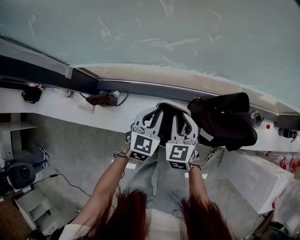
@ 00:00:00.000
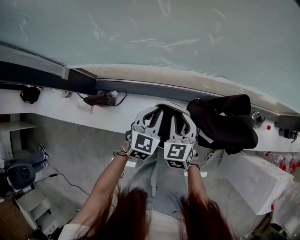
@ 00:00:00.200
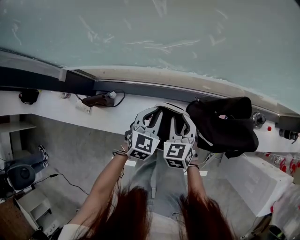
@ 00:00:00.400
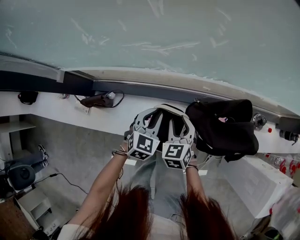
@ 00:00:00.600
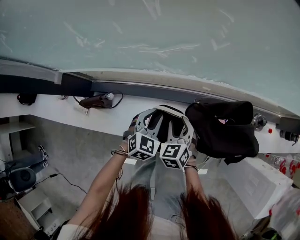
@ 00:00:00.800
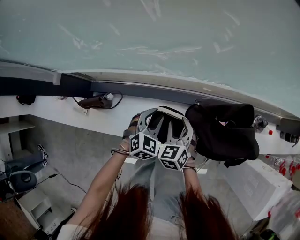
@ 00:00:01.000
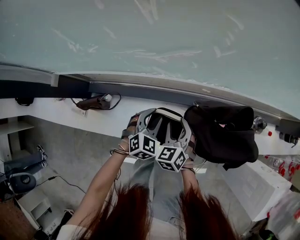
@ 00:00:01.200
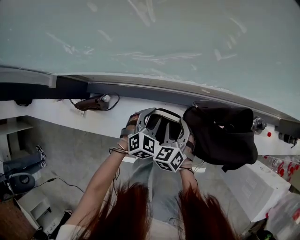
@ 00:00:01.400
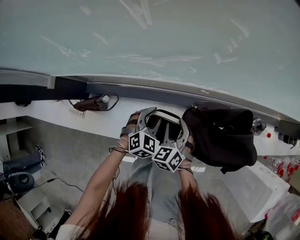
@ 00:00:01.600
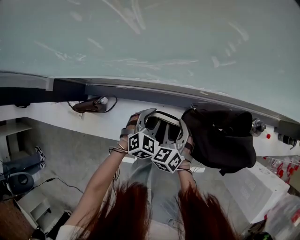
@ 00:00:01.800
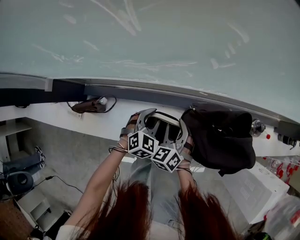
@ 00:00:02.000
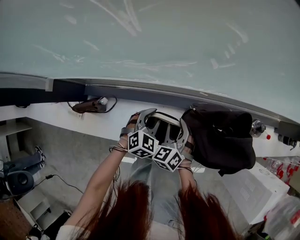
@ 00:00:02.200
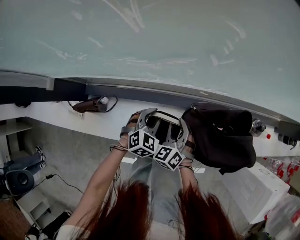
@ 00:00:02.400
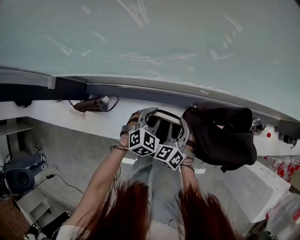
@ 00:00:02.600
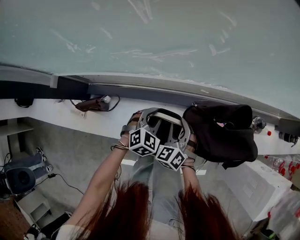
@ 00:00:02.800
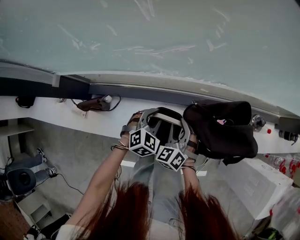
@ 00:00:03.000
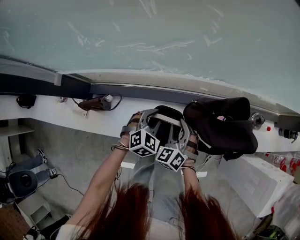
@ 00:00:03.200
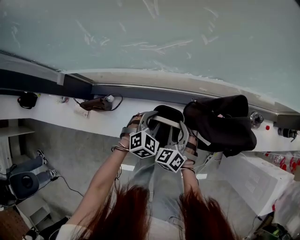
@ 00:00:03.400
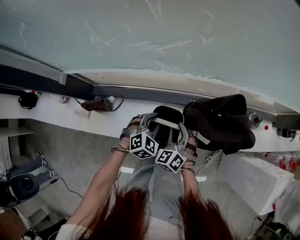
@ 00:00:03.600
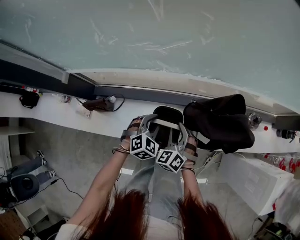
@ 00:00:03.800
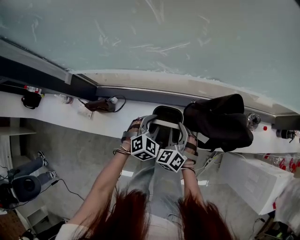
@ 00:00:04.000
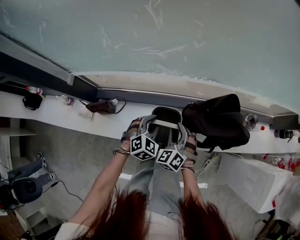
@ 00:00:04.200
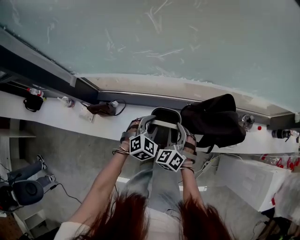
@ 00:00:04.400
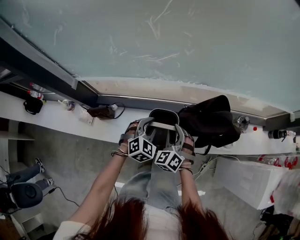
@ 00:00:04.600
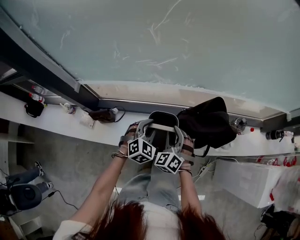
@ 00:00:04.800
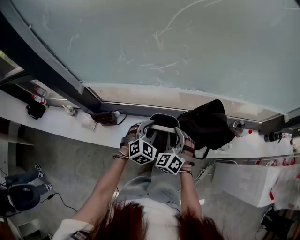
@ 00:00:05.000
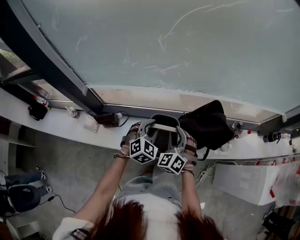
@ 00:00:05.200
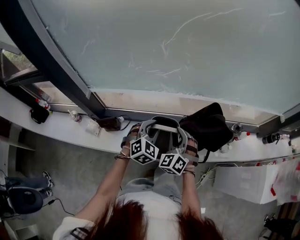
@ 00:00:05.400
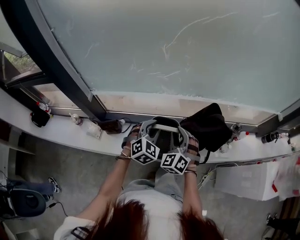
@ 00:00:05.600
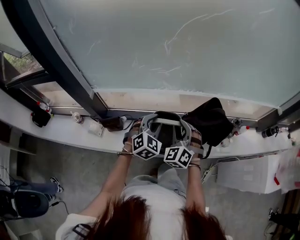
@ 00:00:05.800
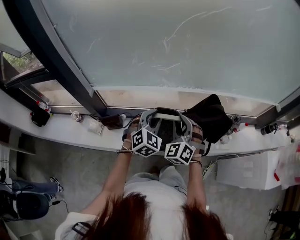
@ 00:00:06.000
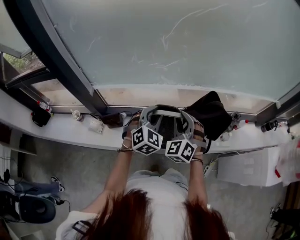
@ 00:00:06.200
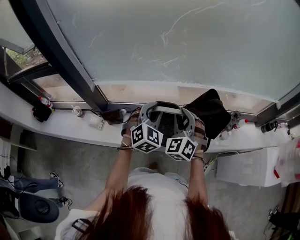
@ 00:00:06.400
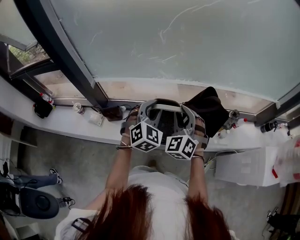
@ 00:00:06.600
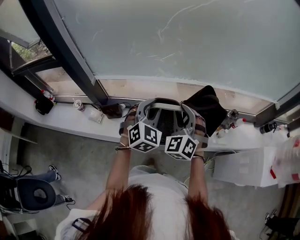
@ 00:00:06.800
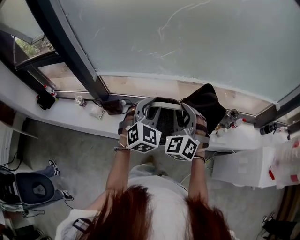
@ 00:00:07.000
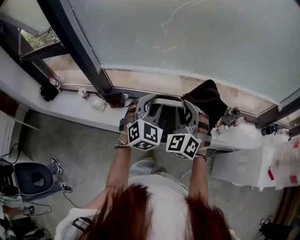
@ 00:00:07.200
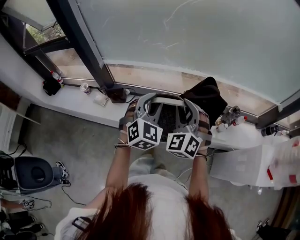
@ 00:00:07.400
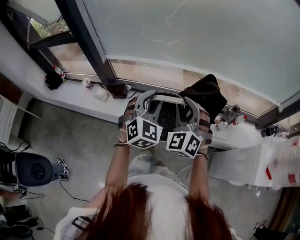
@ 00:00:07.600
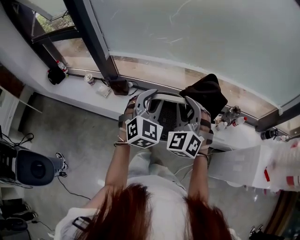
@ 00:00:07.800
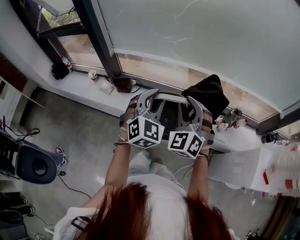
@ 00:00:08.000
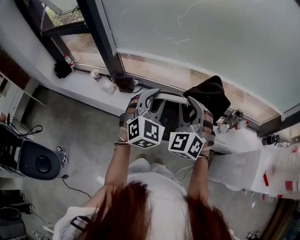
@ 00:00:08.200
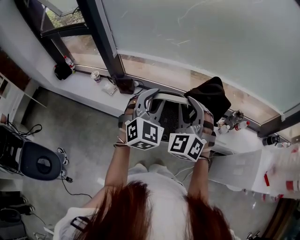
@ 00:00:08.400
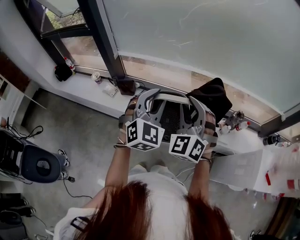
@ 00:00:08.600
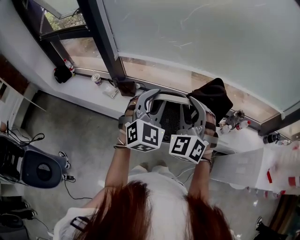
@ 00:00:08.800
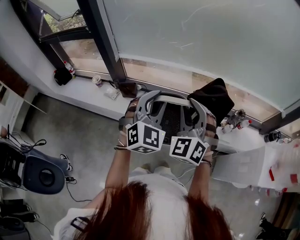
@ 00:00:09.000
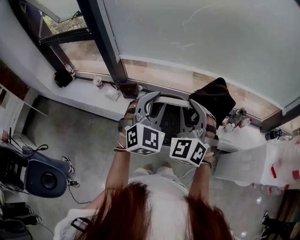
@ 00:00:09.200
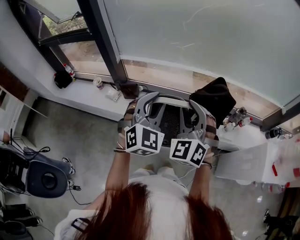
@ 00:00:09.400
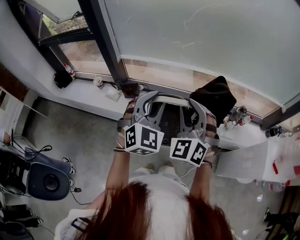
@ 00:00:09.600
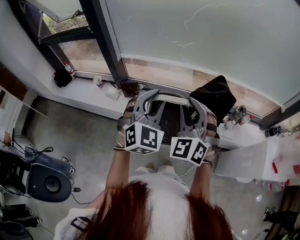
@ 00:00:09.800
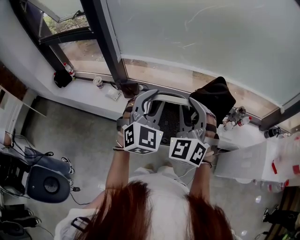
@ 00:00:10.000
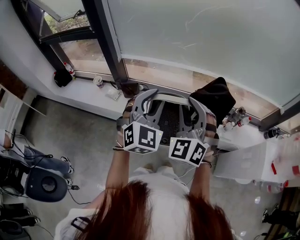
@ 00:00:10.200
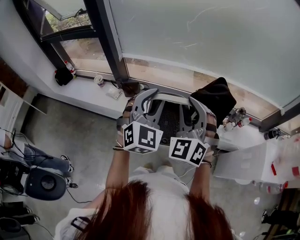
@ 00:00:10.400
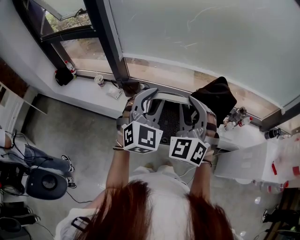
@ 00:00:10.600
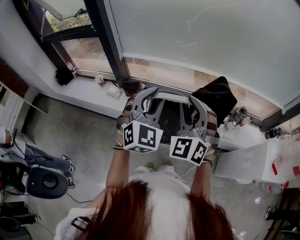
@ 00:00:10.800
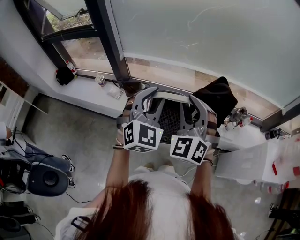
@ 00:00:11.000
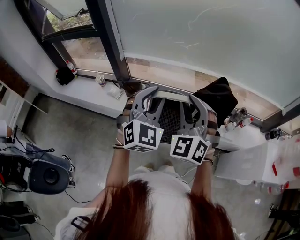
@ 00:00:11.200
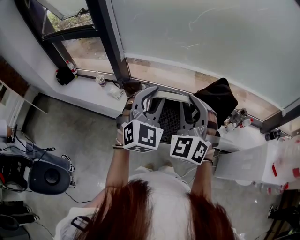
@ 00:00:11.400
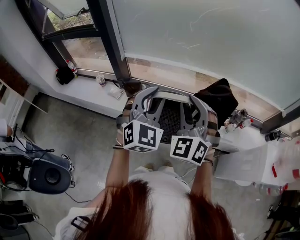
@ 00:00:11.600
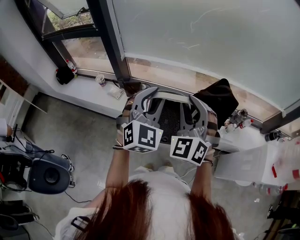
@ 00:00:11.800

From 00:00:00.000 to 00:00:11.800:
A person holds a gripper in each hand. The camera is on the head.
From 00:00:00.000 to 00:00:01.400: Both grippers move downward, approximately 10 cm. The left gripper swivels some 30 degrees, and opens, while the right gripper opens.
From 00:00:01.400 to 00:00:03.000: There are only small adjustments of the grippers.
From 00:00:03.000 to 00:00:04.400: Both grippers move upward and backward, about 10 cm.
From 00:00:04.400 to 00:00:06.000: Both grippers move upward, some 20 cm.
From 00:00:06.000 to 00:00:07.400: The grippers both shift backward, upward and to the right by approximately 20 cm.
From 00:00:07.400 to 00:00:08.800: Both grippers travel together backward and upward, some 10 cm.
From 00:00:08.800 to 00:00:10.400: Both grippers move to the left, approximately 5 cm.
From 00:00:10.400 to 00:00:11.800: There are only small adjustments of the grippers.

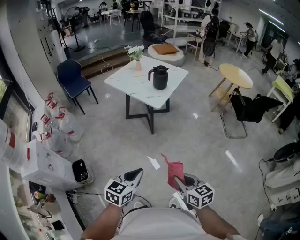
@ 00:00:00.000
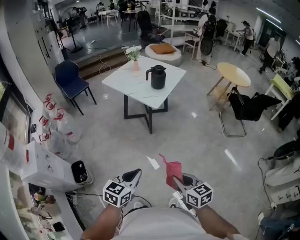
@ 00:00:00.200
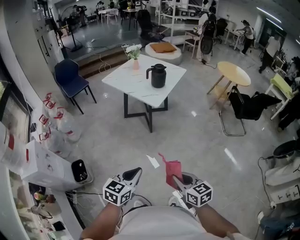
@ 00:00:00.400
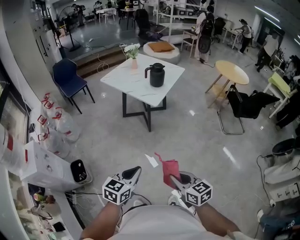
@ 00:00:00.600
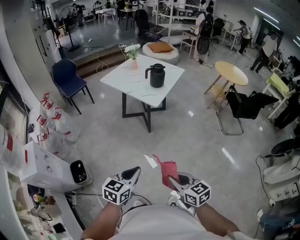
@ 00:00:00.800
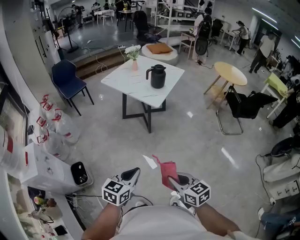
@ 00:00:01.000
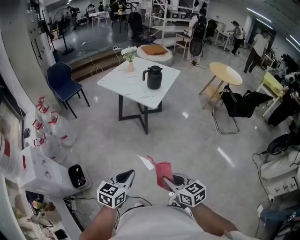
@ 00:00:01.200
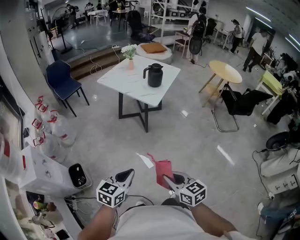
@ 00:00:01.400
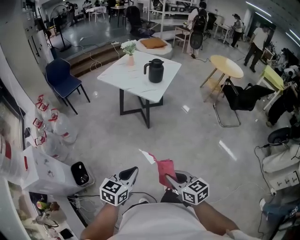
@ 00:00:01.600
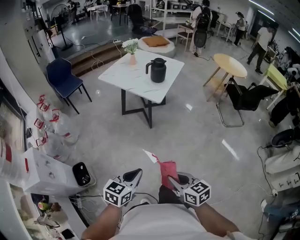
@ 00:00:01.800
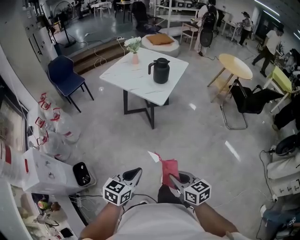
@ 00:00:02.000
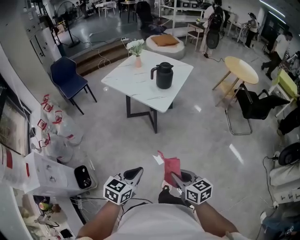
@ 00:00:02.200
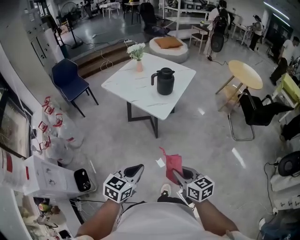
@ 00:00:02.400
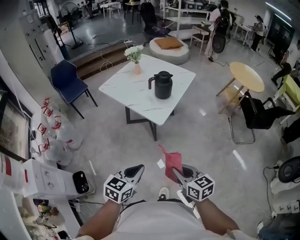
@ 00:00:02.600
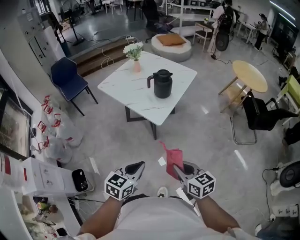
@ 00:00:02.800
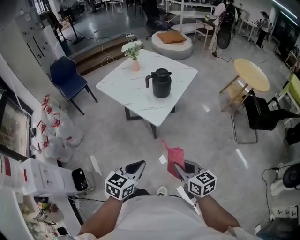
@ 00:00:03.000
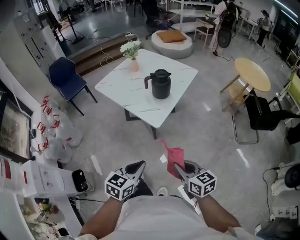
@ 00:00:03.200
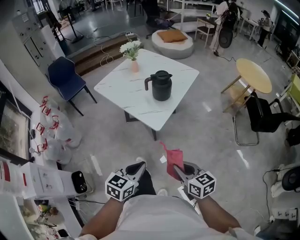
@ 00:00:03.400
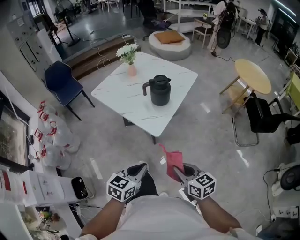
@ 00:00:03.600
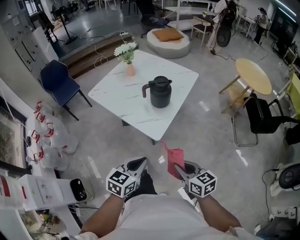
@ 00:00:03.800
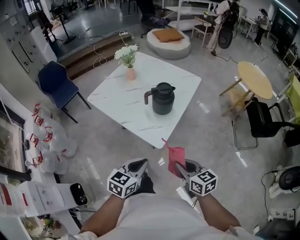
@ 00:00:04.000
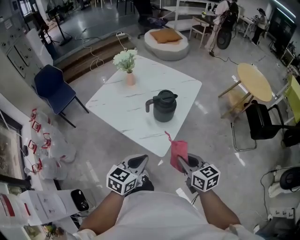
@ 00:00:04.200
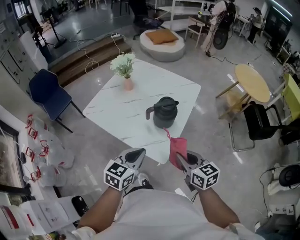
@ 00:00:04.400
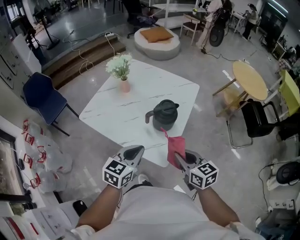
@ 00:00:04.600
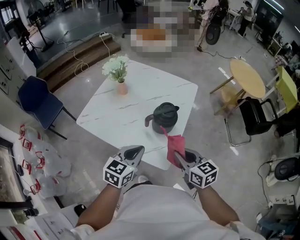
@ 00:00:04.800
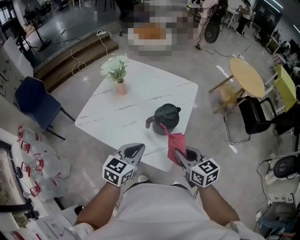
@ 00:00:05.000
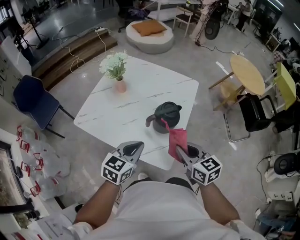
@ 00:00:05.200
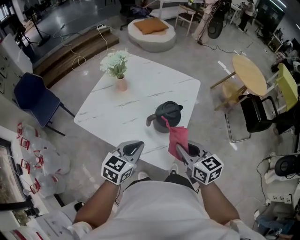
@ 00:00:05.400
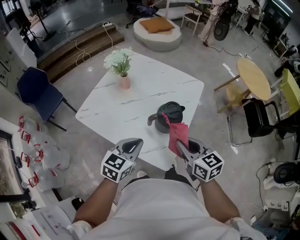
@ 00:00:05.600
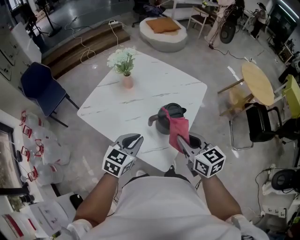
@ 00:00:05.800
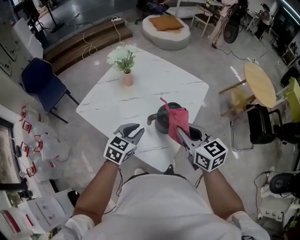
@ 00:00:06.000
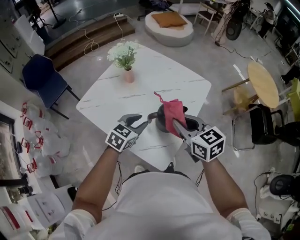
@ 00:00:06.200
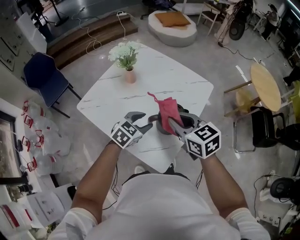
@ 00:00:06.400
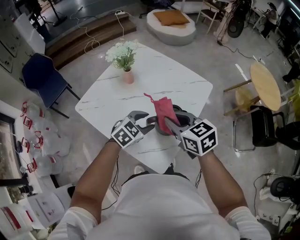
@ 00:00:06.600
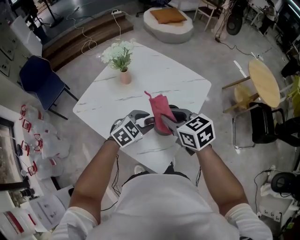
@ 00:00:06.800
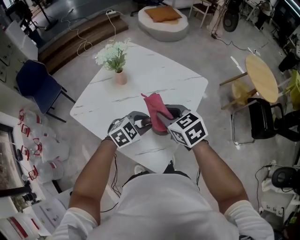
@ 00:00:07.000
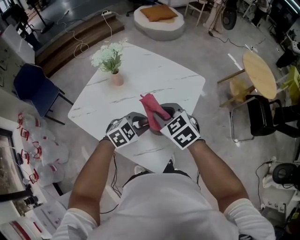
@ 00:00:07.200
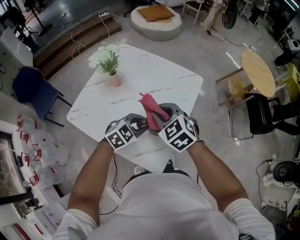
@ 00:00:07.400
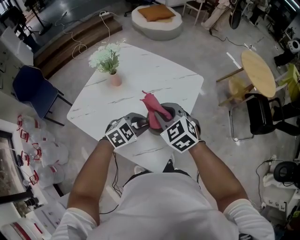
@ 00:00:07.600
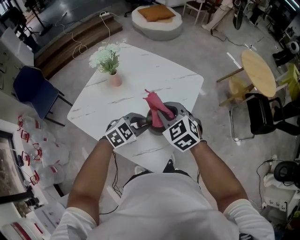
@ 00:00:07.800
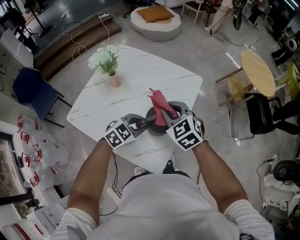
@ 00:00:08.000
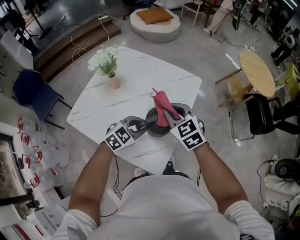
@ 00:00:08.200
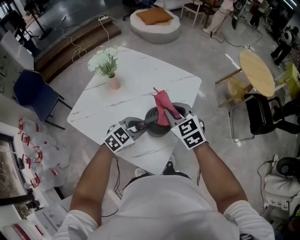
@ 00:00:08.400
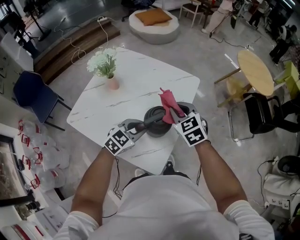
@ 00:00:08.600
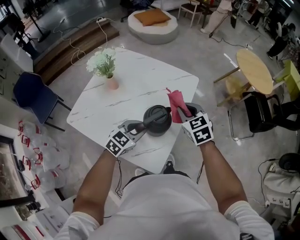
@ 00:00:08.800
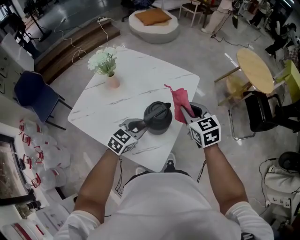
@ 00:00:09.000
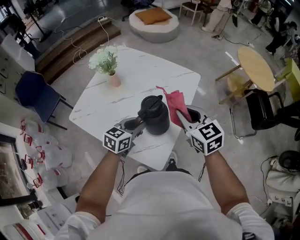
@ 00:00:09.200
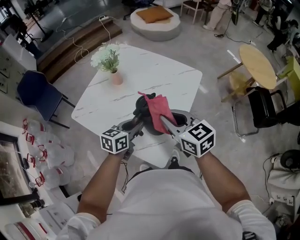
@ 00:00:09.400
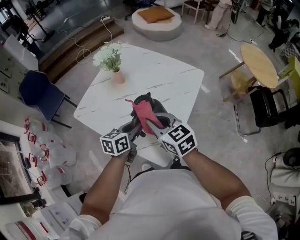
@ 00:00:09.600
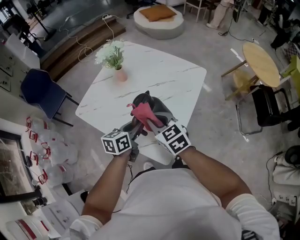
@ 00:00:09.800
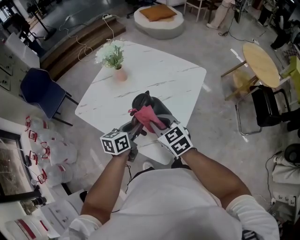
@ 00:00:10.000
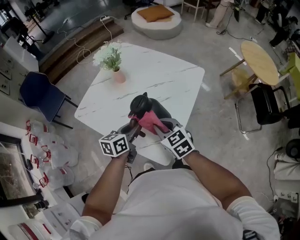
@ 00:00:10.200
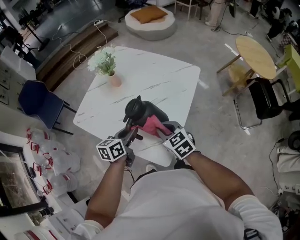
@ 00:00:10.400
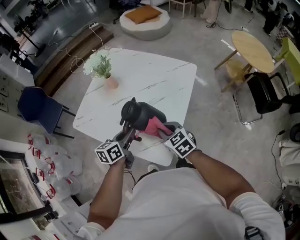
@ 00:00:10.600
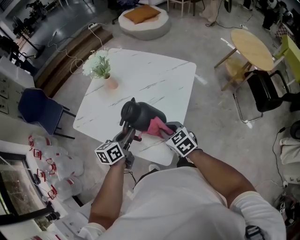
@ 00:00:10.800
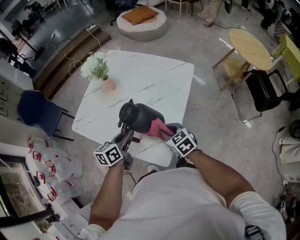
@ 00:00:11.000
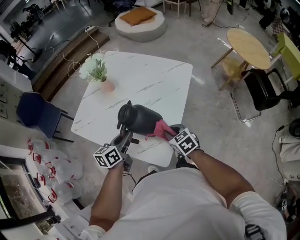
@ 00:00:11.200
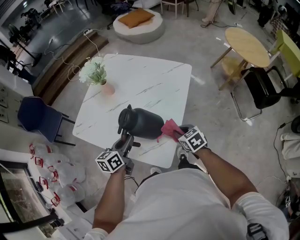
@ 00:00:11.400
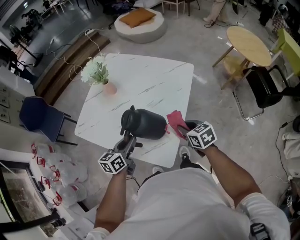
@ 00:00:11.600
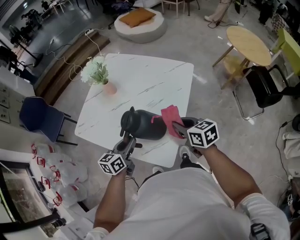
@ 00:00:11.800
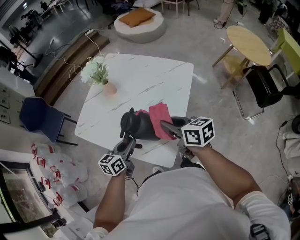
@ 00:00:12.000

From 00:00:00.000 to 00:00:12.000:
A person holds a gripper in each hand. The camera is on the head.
From 00:00:00.000 to 00:00:01.600: The two grippers go about 10 cm to the left.
From 00:00:01.600 to 00:00:03.000: The two grippers go some 35 cm forward and to the right.
From 00:00:03.000 to 00:00:04.400: Both grippers move forward, about 30 cm.
From 00:00:04.400 to 00:00:06.000: The two grippers go some 15 cm forward.
From 00:00:06.000 to 00:00:07.600: The right gripper moves forward, about 10 cm, and rotates roughly 40 degrees. The left gripper is displaced to the right and forward by about 10 cm, changes its angle by about 30 degrees, and opens, then closes once more.
From 00:00:07.600 to 00:00:09.000: The left gripper rotates about 20 degrees, while the right gripper goes approximately 15 cm to the right, and rotates approximately 30 degrees.
From 00:00:09.000 to 00:00:10.400: The right gripper goes roughly 20 cm to the left, downward and backward, while the left gripper shifts approximately 10 cm to the left, and rolls counterclockwise, seen from behind, by approximately 40 degrees.
From 00:00:10.400 to 00:00:12.000: The right gripper travels upward by some 5 cm, and swivels approximately 40 degrees.
